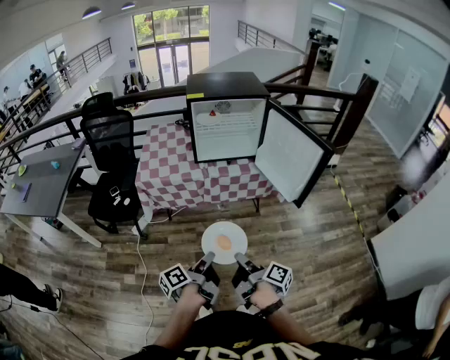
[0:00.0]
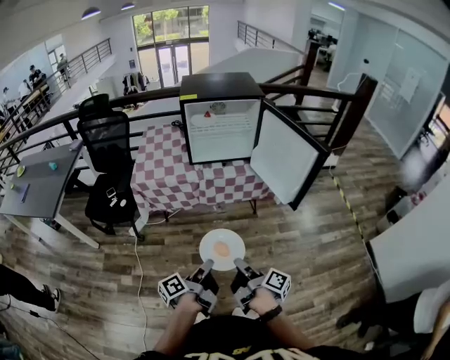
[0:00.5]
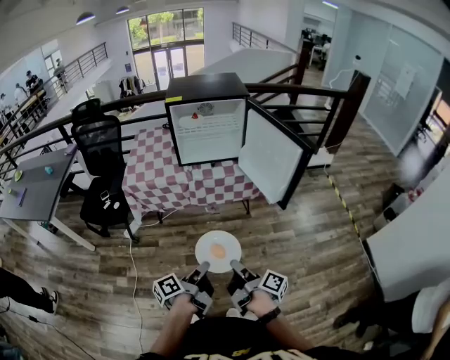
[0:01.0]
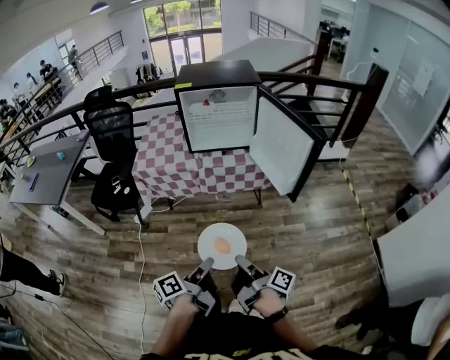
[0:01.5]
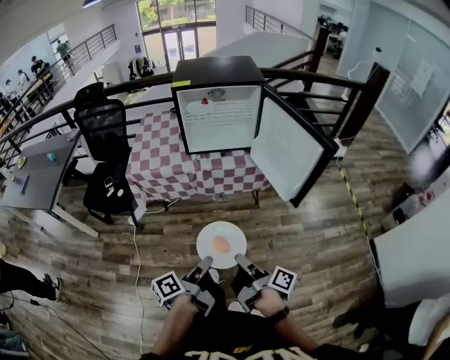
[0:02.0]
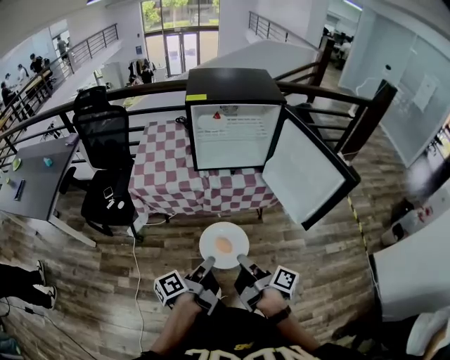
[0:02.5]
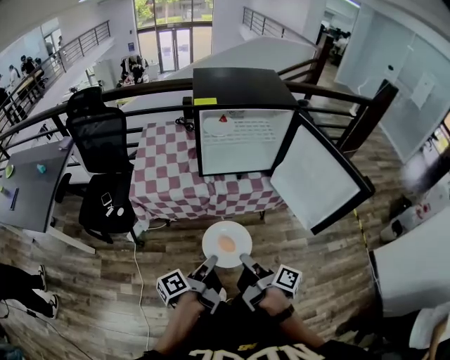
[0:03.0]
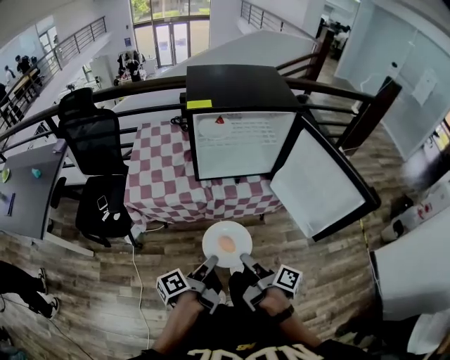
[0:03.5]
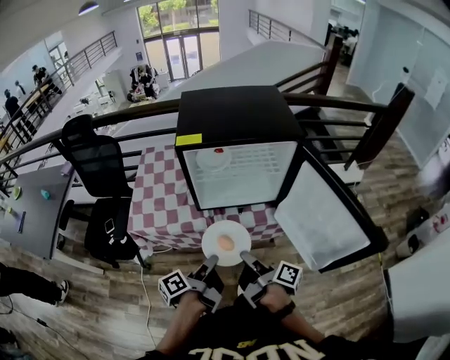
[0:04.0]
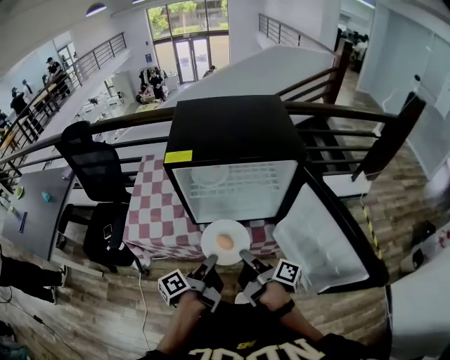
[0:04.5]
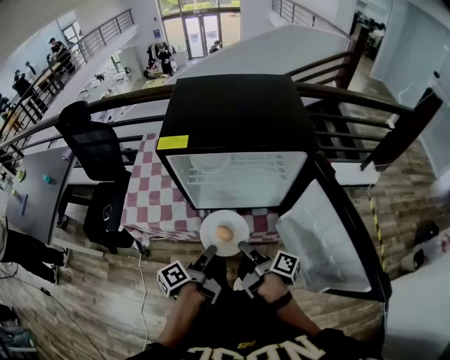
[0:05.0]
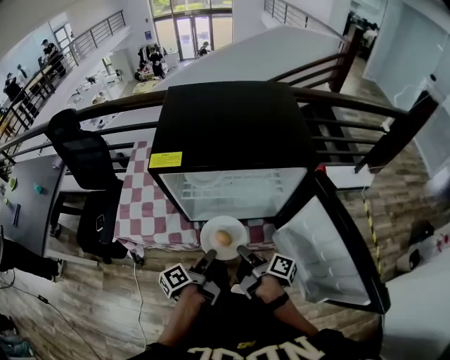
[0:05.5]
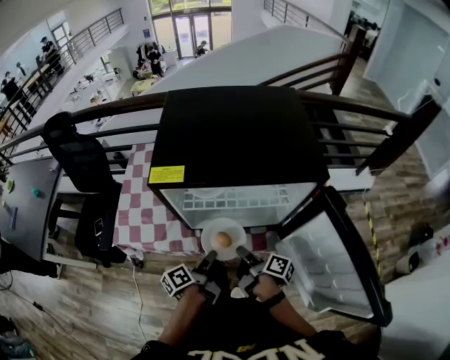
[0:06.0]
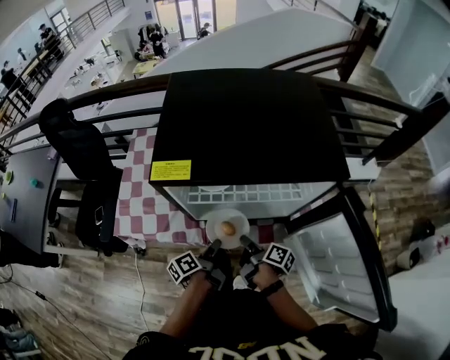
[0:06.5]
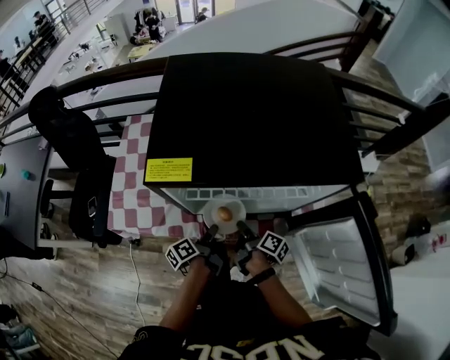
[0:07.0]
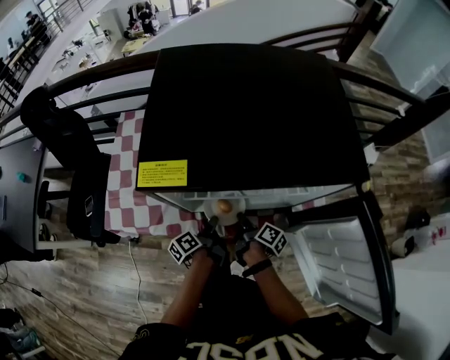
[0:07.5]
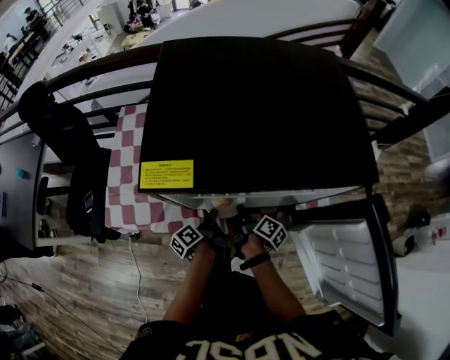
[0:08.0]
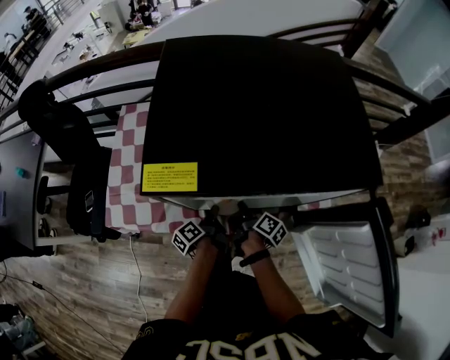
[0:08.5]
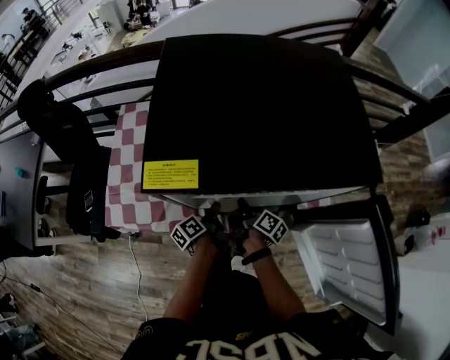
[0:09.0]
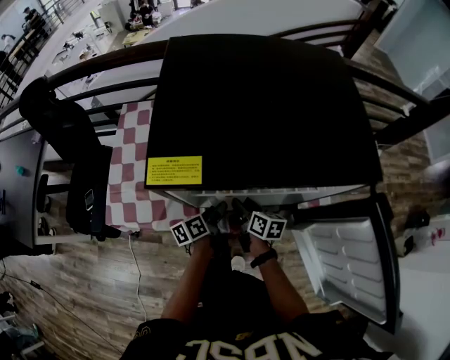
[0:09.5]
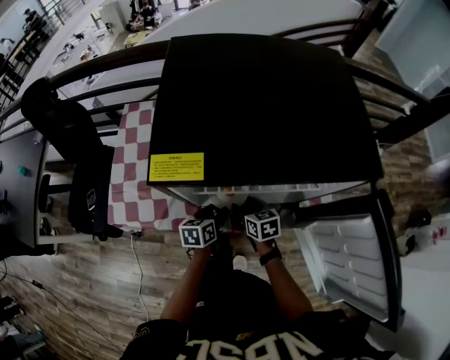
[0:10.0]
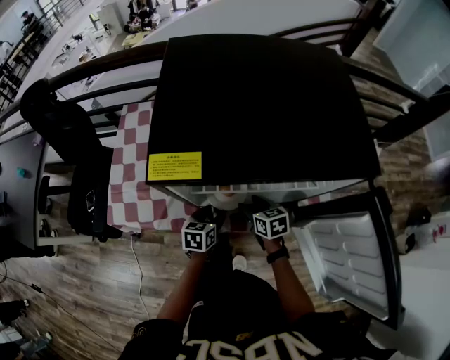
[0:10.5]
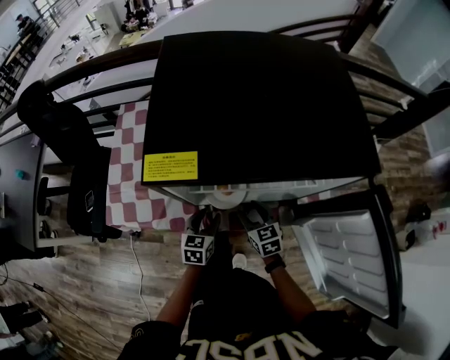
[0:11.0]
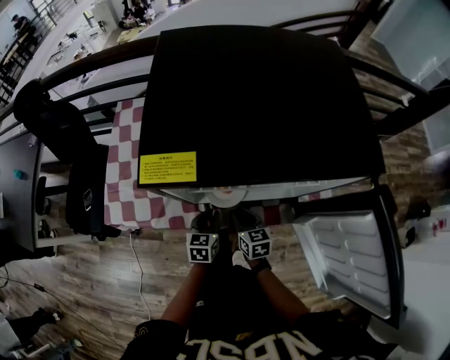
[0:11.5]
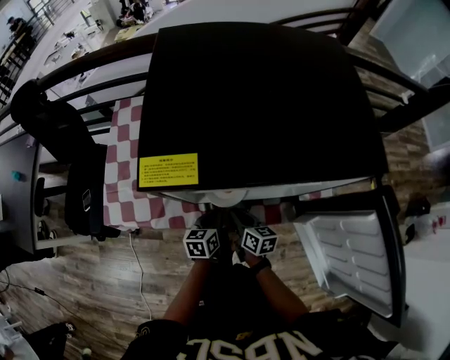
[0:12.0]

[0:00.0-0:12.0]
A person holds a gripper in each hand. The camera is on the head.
0:00.0 to 0:02.0: The grippers both shift to the right by roughly 5 cm.
0:02.0 to 0:04.0: Both grippers travel together forward, some 35 cm.
0:04.0 to 0:06.0: The two grippers go about 20 cm forward and downward.
0:06.0 to 0:08.0: The grippers both shift downward and forward by roughly 15 cm.
0:08.0 to 0:10.0: The right gripper rolls counterclockwise, seen from behind, by approximately 60 degrees, and opens its fingers, while the left gripper rotates around the line of its fingers by roughly 50 degrees, clockwise from behind, and opens up.
0:10.0 to 0:12.0: The left gripper closes, while the right gripper changes its angle by roughly 20 degrees, and closes up.

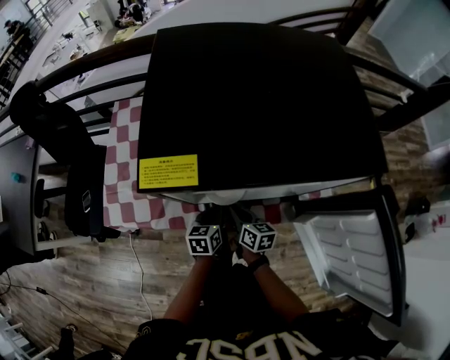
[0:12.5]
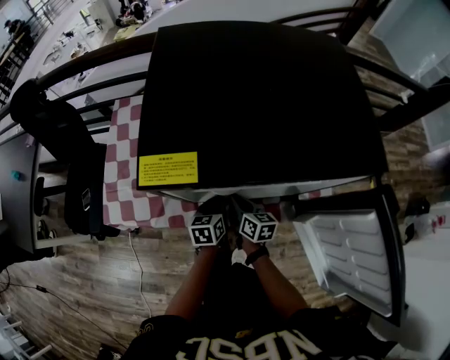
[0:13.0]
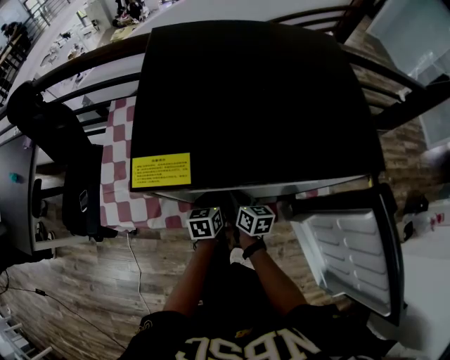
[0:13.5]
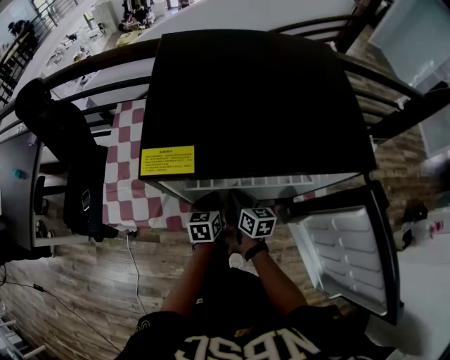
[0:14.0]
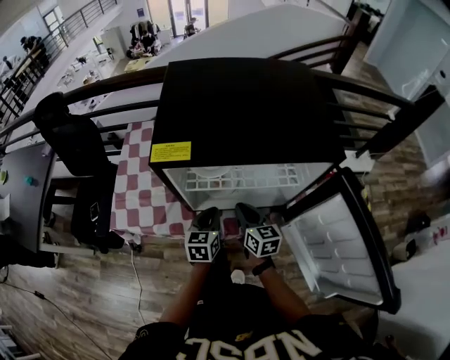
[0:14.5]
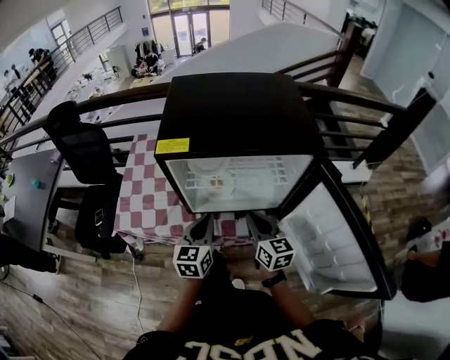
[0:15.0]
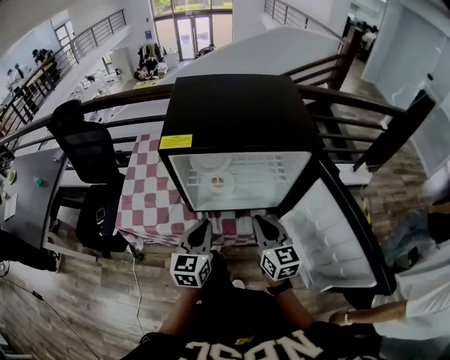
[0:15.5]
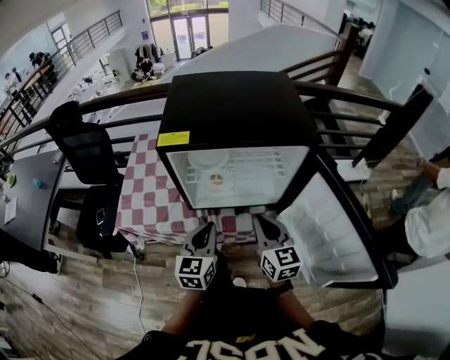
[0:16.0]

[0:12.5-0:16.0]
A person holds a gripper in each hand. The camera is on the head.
0:12.5 to 0:14.5: Both grippers travel together upward, roughly 10 cm. The right gripper turns by some 20 degrees.
0:14.5 to 0:16.0: The right gripper moves upward, backward and to the right, approximately 20 cm. Meanwhile the left gripper moves upward and backward, approximately 15 cm.

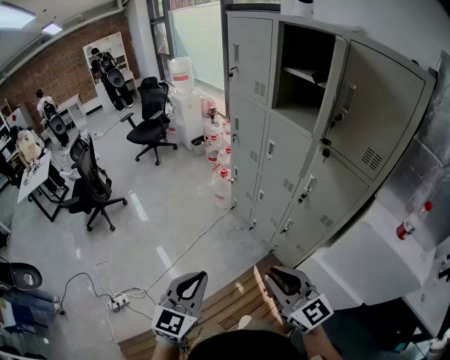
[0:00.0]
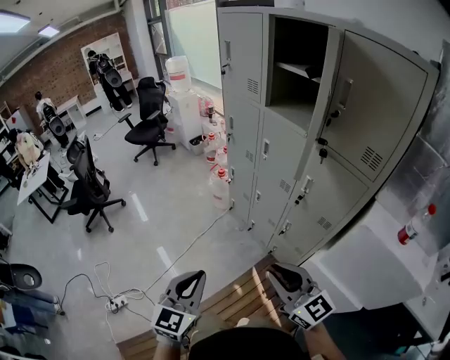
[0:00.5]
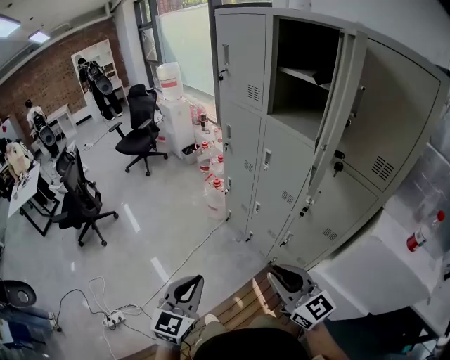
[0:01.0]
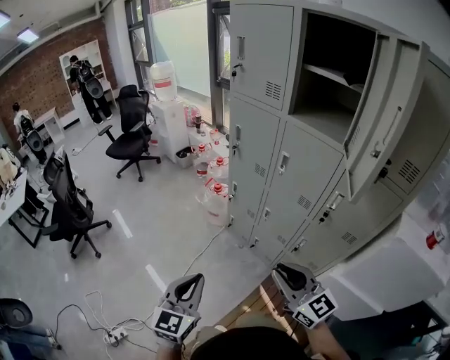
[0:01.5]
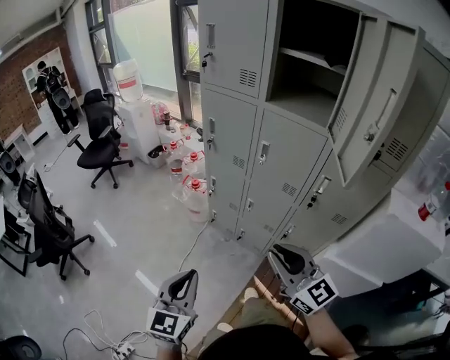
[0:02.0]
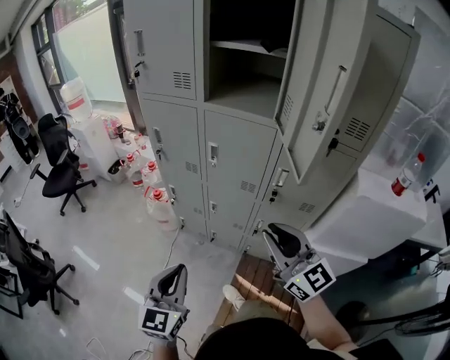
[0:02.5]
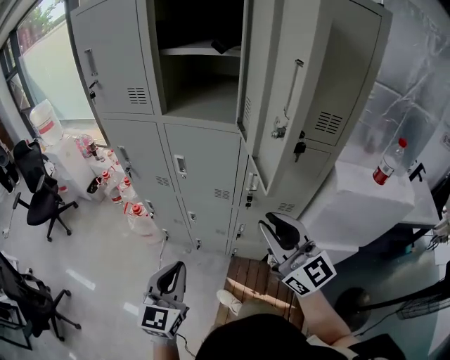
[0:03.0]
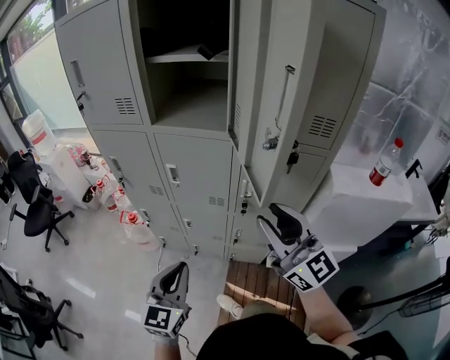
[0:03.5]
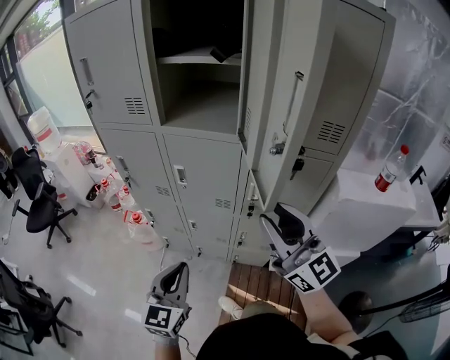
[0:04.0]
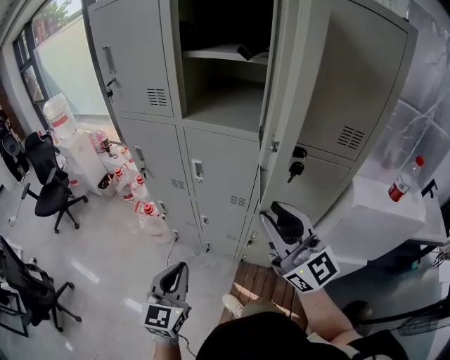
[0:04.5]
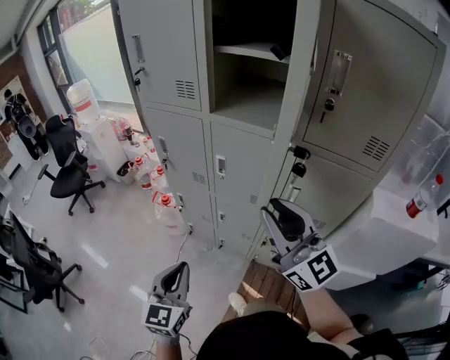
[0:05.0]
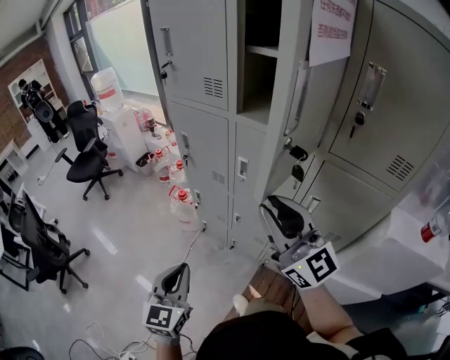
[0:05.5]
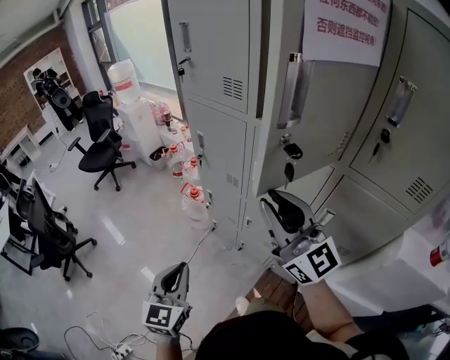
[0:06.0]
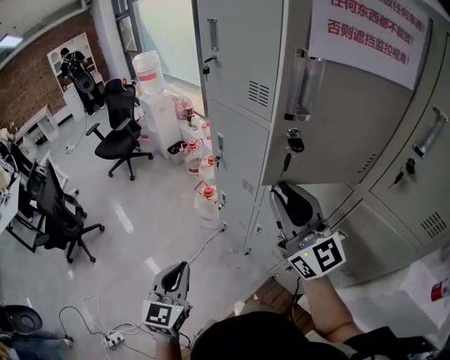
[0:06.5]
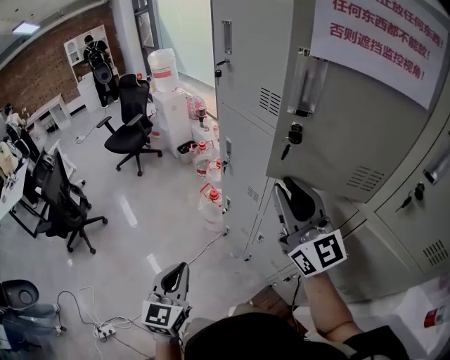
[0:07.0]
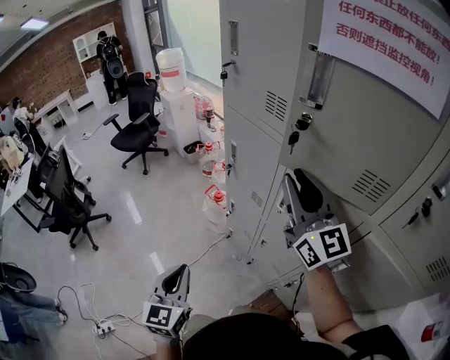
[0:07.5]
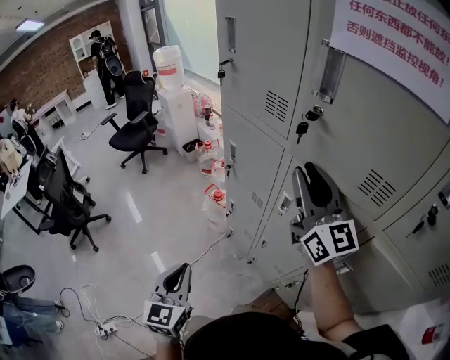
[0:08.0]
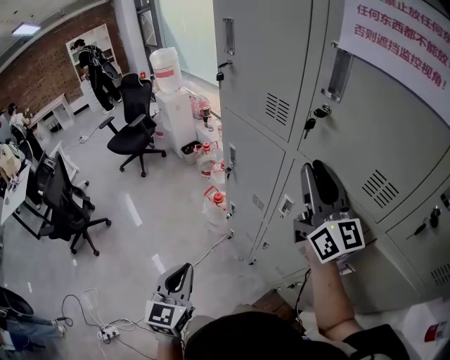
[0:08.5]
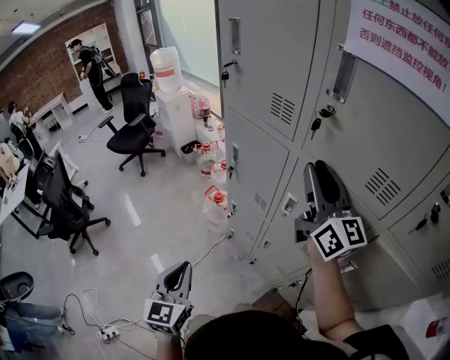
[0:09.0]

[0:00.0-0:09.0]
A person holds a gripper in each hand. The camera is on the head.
0:00.0 to 0:02.0: The left gripper moves forward, downward and to the left, approximately 30 cm, while the right gripper is displaced forward by roughly 25 cm.
0:02.0 to 0:04.5: The left gripper travels forward and to the right by roughly 20 cm, while the right gripper heads forward, to the right and upward, covering about 20 cm, and turns by some 20 degrees.
0:04.5 to 0:07.0: The right gripper moves about 25 cm, and changes its angle by roughly 20 degrees. Meanwhile the left gripper shifts by about 10 cm, and turns by approximately 30 degrees.
0:07.0 to 0:09.0: The right gripper moves forward and to the right, roughly 10 cm. Meanwhile the left gripper changes place by about 5 cm.

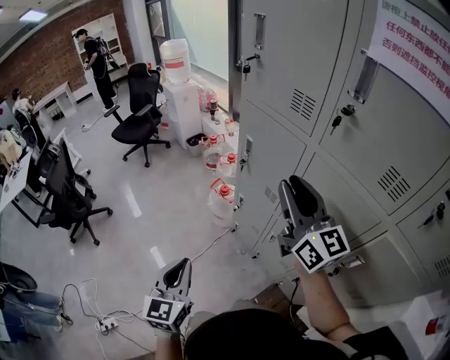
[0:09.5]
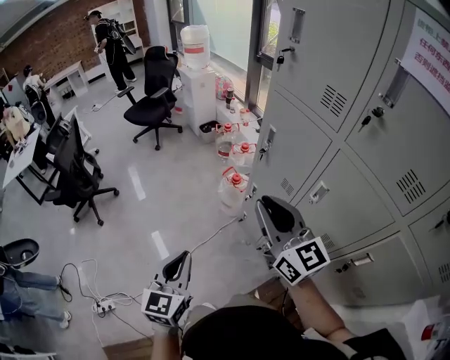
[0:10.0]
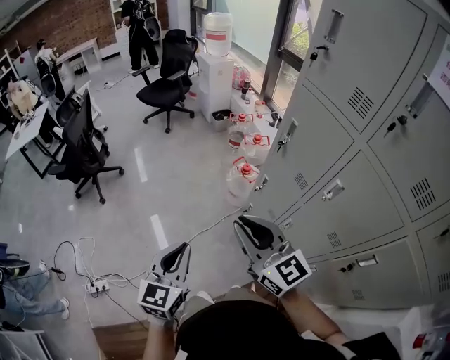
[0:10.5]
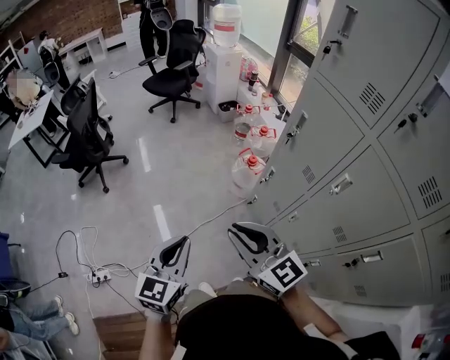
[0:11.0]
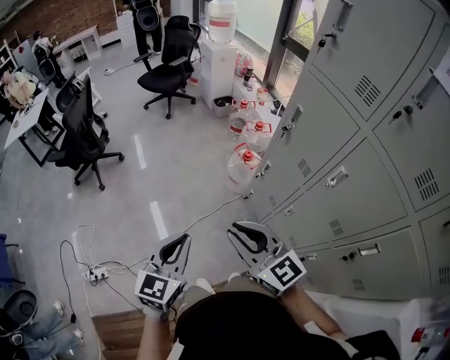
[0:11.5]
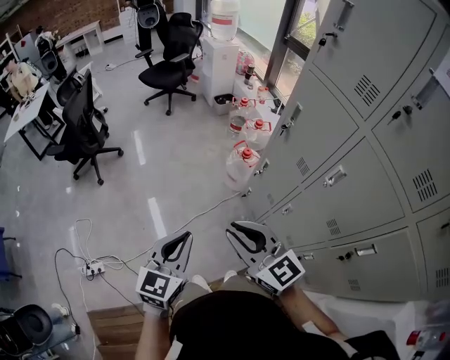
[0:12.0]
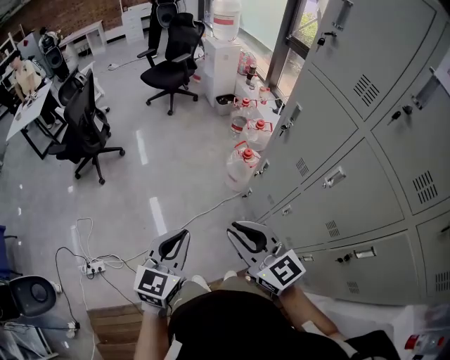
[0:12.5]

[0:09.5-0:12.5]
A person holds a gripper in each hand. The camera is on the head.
0:09.5 to 0:11.0: The left gripper shifts about 10 cm to the left. The right gripper shifts roughly 30 cm to the left and downward, and rotates approximately 40 degrees.
0:11.0 to 0:12.5: There are only small adjustments of the grippers.
